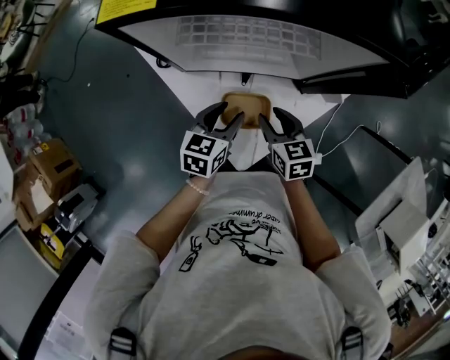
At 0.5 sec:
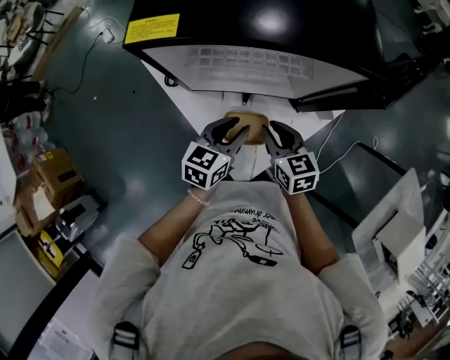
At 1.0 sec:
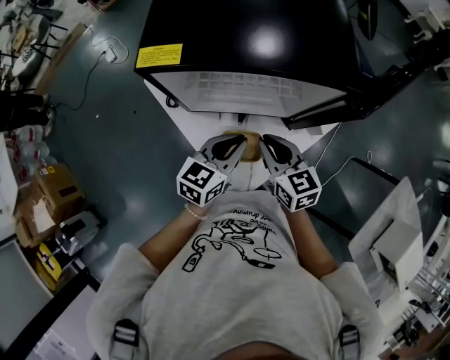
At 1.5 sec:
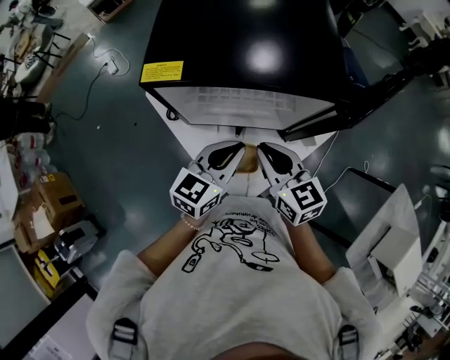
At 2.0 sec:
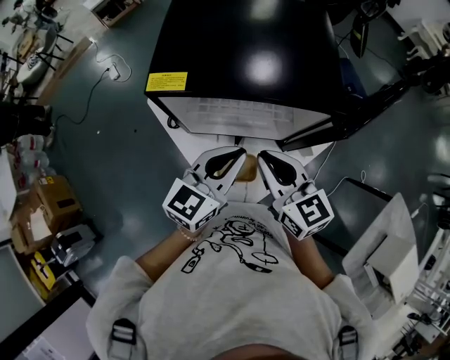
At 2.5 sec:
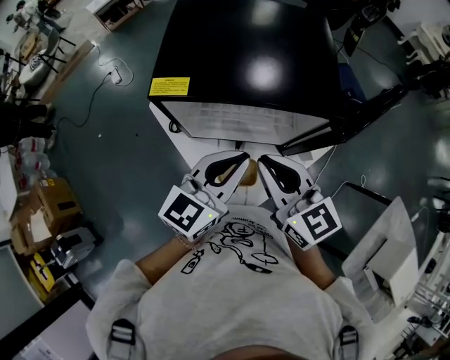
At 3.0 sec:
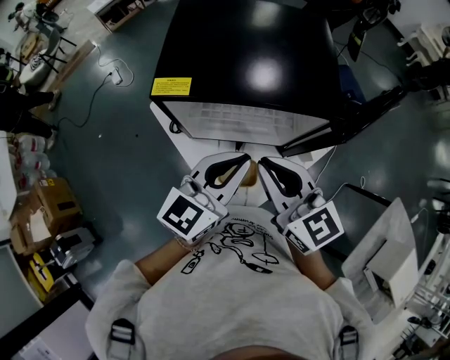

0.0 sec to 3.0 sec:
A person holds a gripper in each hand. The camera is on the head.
0.0 sec to 1.5 sec: Both grippers travel together upward, some 20 cm. The left gripper swivels some 20 degrees, and closes, while the right gripper turns by some 20 degrees, and closes up.
1.5 sec to 3.0 sec: Both grippers travel together upward, some 10 cm.

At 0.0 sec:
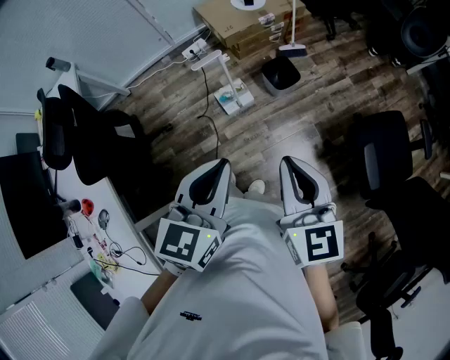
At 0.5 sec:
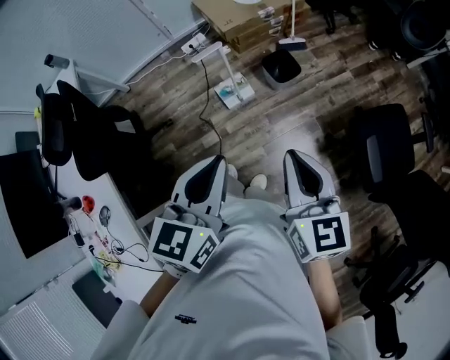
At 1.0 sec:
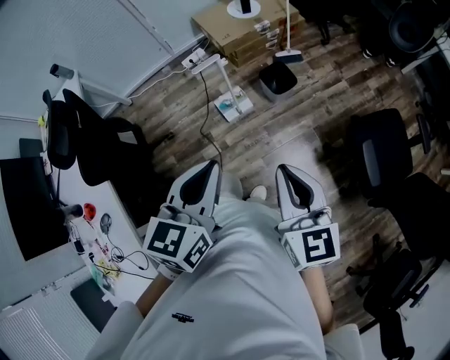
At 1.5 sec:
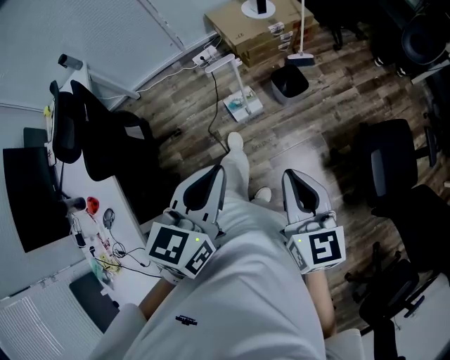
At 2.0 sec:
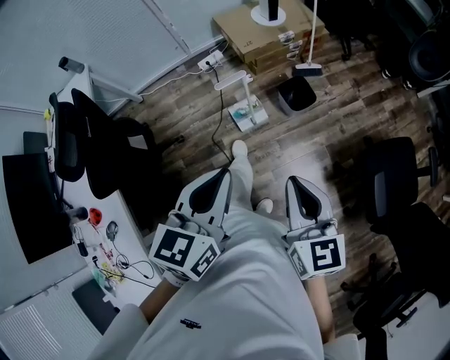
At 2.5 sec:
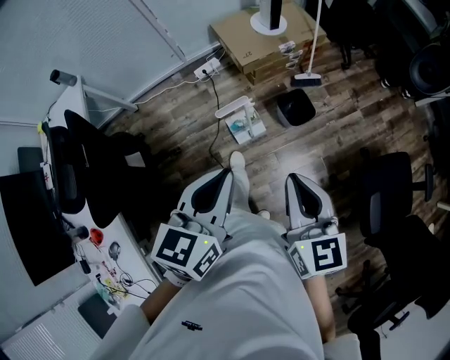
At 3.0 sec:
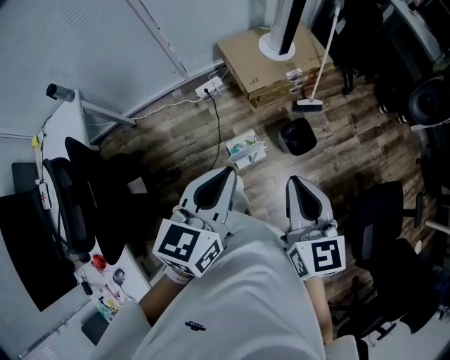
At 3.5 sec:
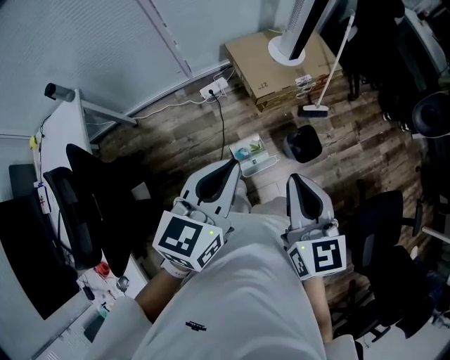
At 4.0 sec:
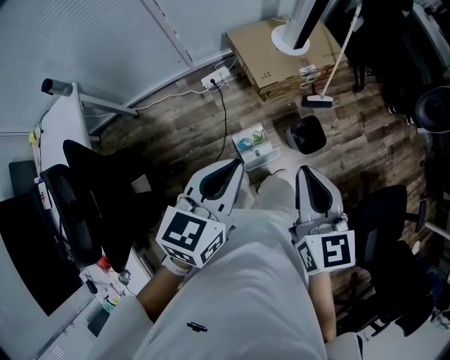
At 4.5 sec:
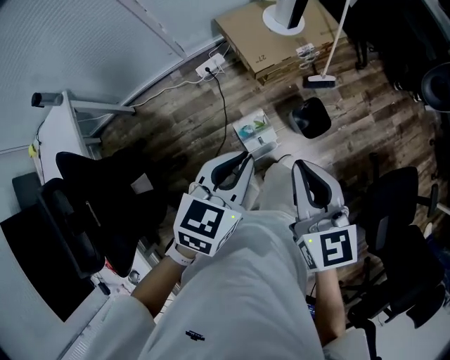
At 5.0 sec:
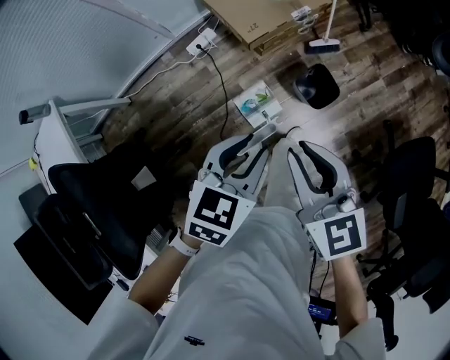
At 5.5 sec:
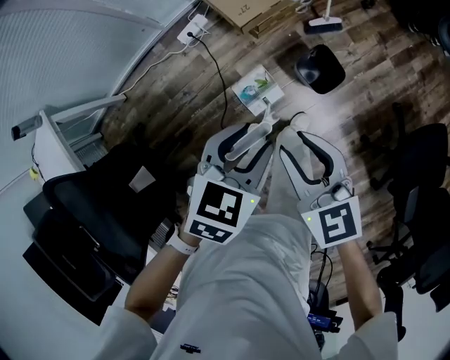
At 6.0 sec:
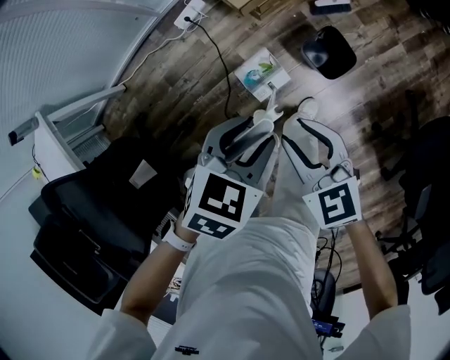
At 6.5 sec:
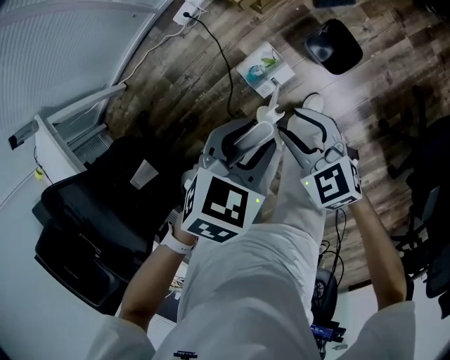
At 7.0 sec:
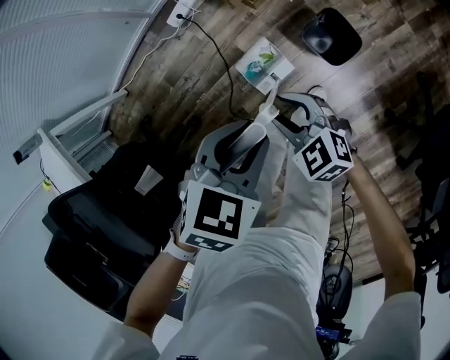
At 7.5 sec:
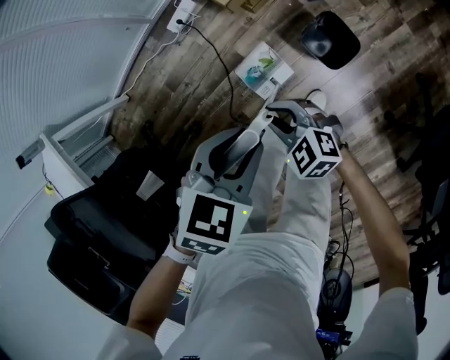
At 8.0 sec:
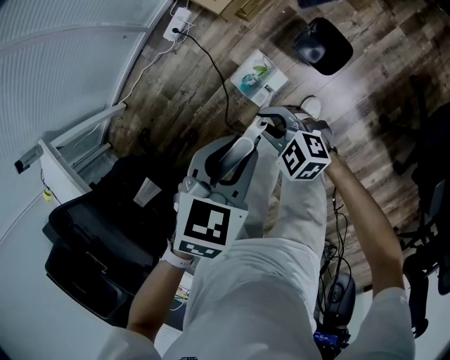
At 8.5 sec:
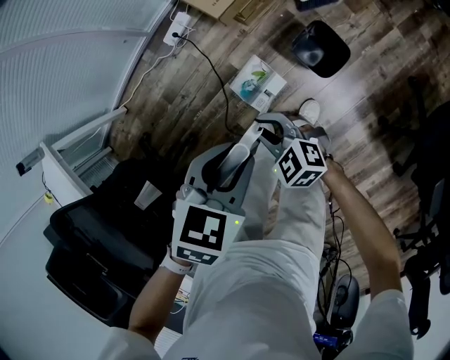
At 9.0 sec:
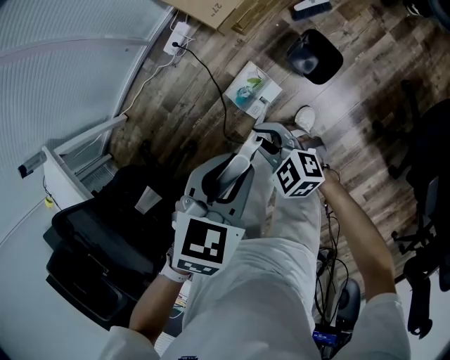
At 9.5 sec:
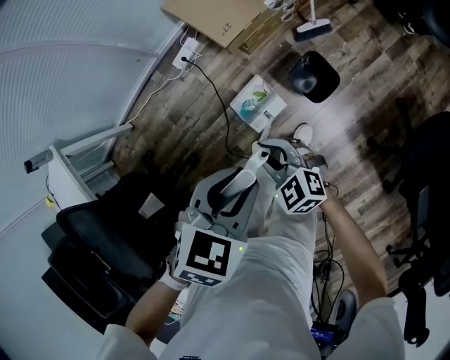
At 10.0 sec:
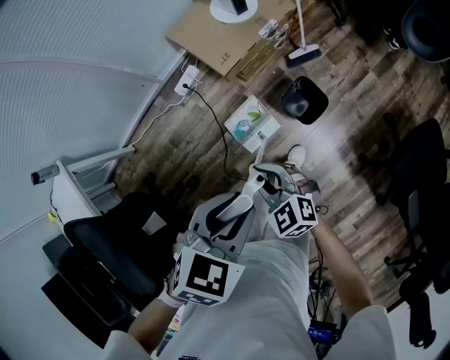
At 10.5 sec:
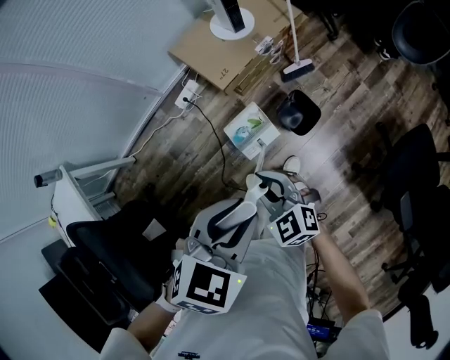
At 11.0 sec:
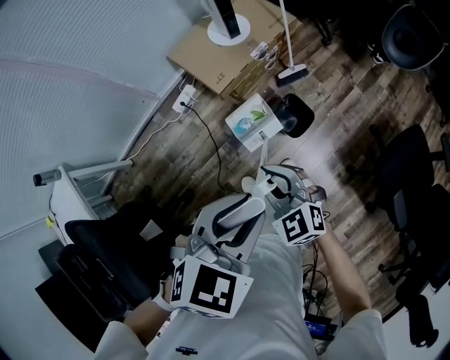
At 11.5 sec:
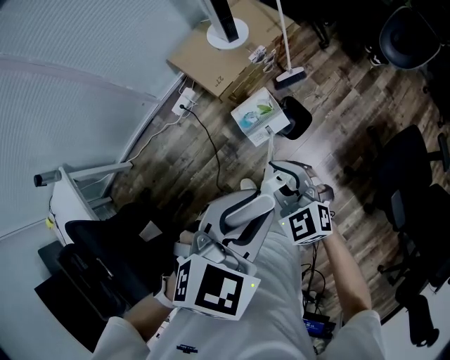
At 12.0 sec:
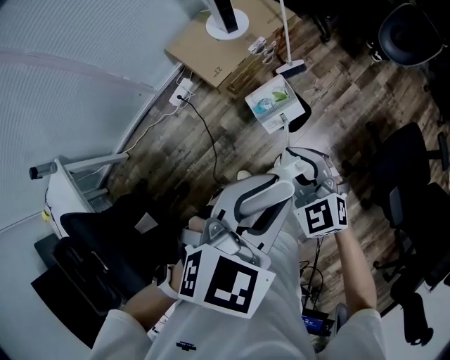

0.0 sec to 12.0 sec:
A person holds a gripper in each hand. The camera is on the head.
0.0 sec to 2.0 sec: The right gripper ends up approximately 5 cm from where it was; the left gripper goes some 10 cm to the left and forward.
2.0 sec to 4.0 sec: The two grippers go some 35 cm forward and to the left.
4.0 sec to 6.0 sec: Both grippers travel together downward, roughly 25 cm. The left gripper angles its fingers downward, by roughly 30 degrees, and opens. The right gripper swivels some 20 degrees, and opens its fingers.
6.0 sec to 8.0 sec: The right gripper moves downward, approximately 15 cm, and turns by roughly 20 degrees.
8.0 sec to 10.0 sec: Both grippers move upward, about 15 cm.
10.0 sec to 12.0 sec: Both grippers travel together upward and to the right, approximately 15 cm.

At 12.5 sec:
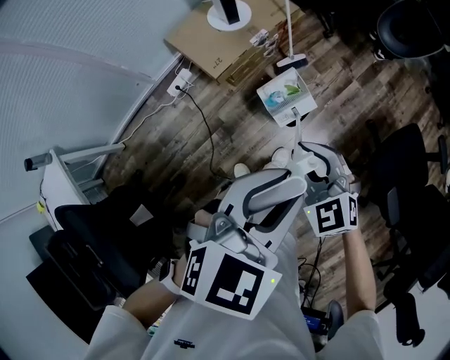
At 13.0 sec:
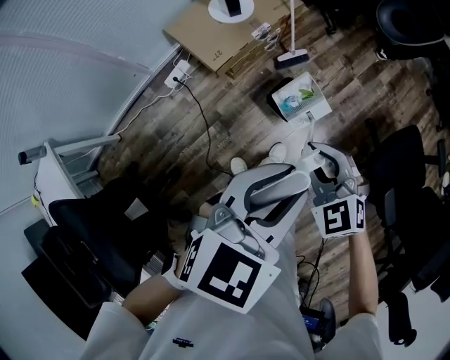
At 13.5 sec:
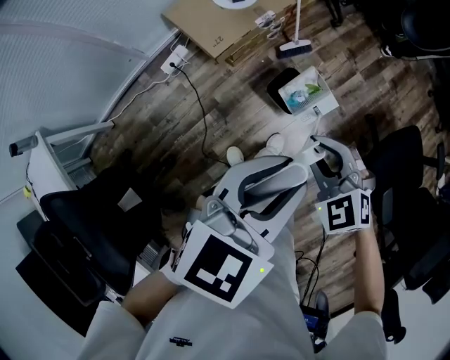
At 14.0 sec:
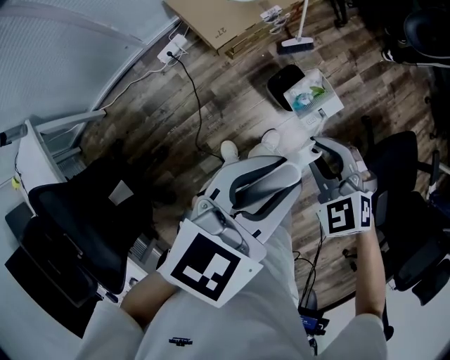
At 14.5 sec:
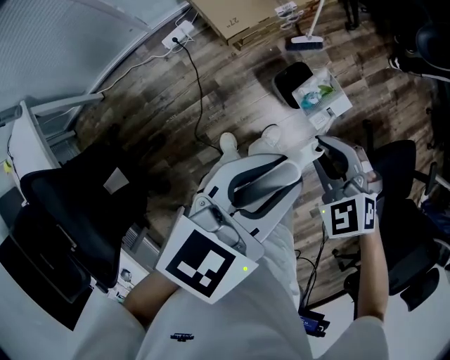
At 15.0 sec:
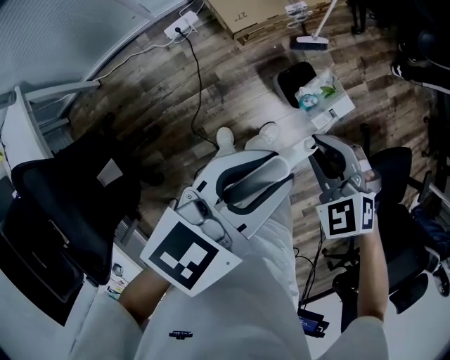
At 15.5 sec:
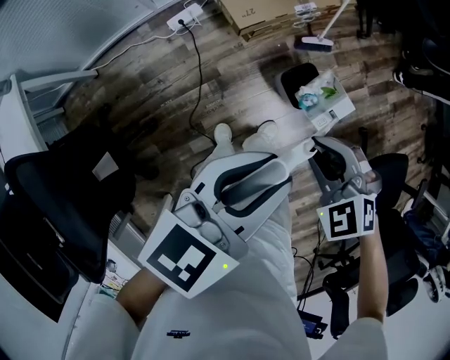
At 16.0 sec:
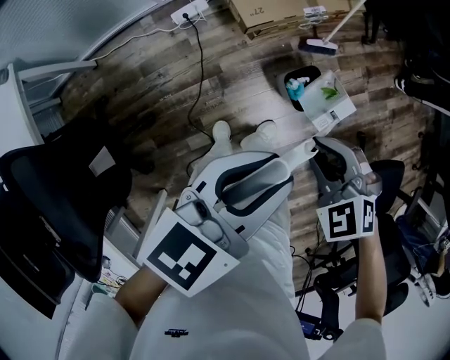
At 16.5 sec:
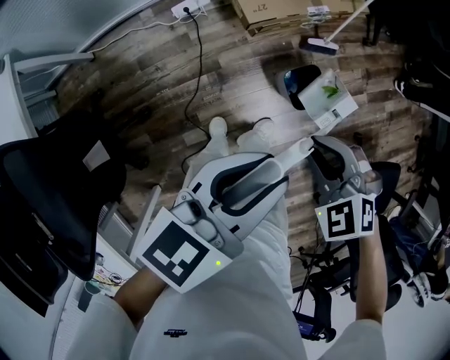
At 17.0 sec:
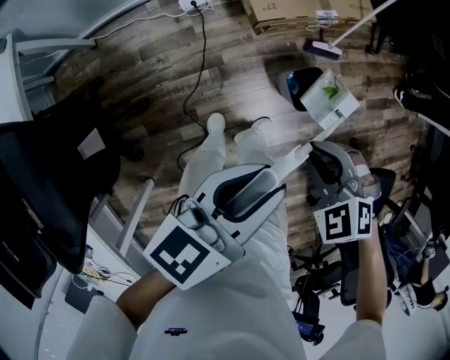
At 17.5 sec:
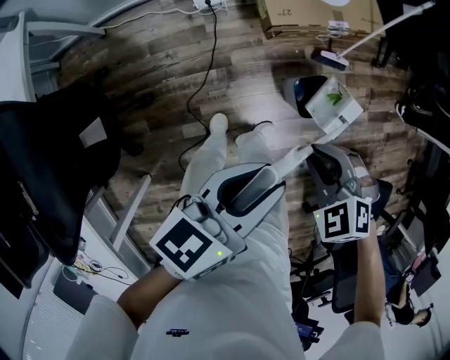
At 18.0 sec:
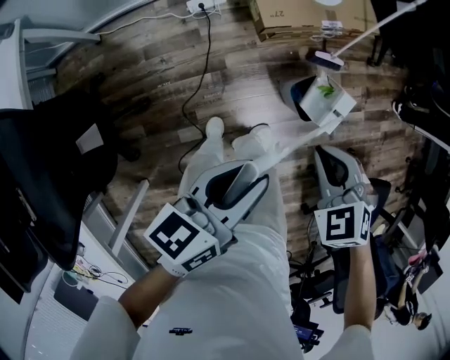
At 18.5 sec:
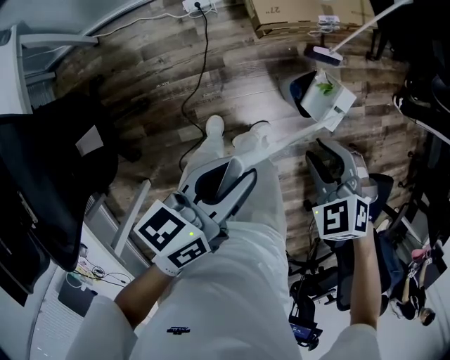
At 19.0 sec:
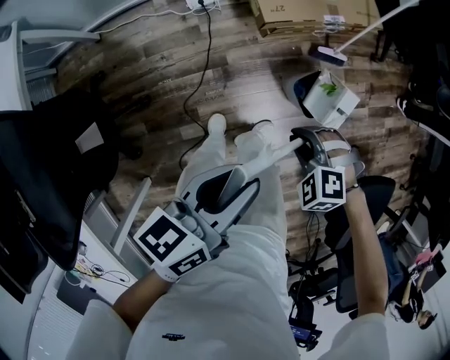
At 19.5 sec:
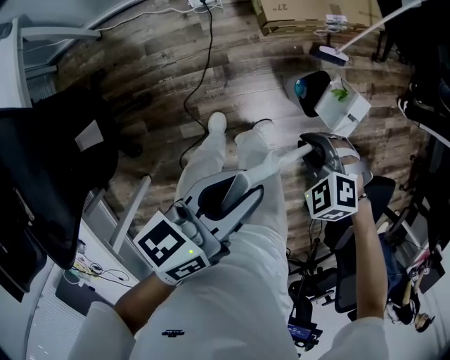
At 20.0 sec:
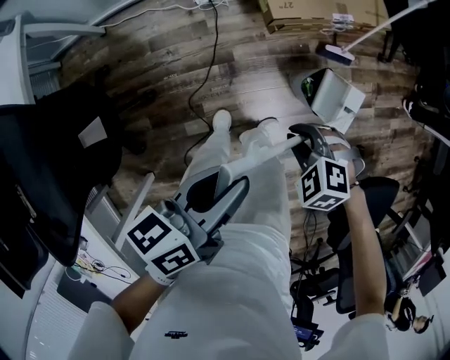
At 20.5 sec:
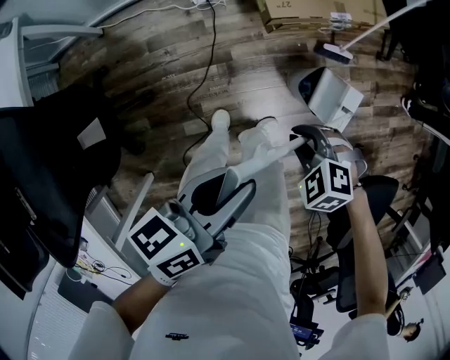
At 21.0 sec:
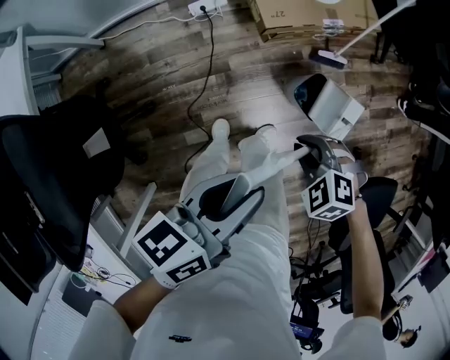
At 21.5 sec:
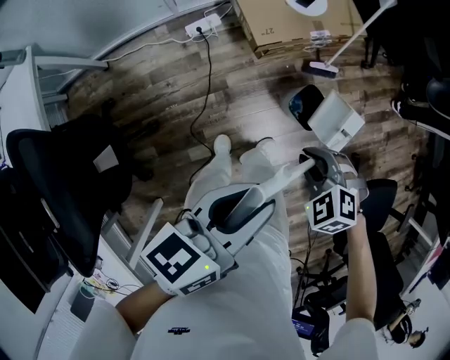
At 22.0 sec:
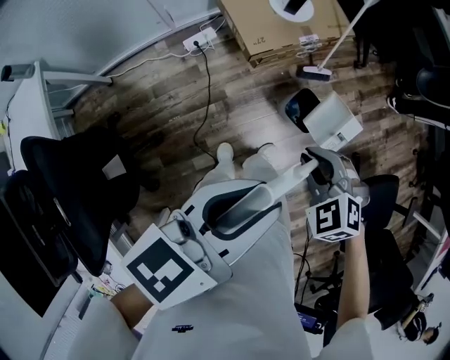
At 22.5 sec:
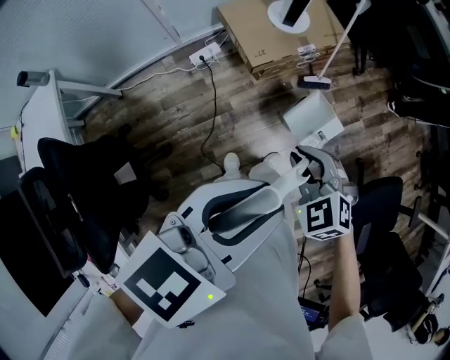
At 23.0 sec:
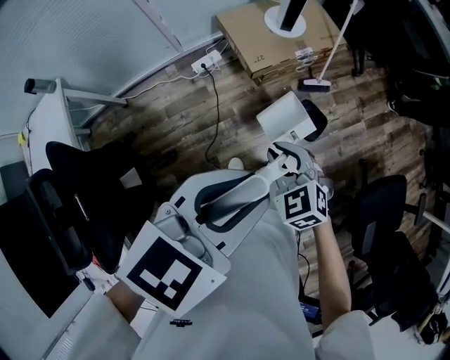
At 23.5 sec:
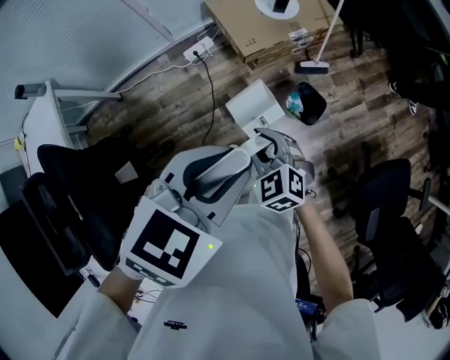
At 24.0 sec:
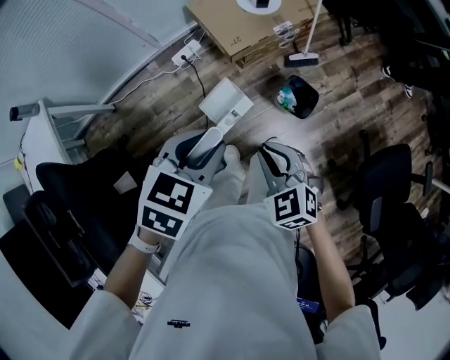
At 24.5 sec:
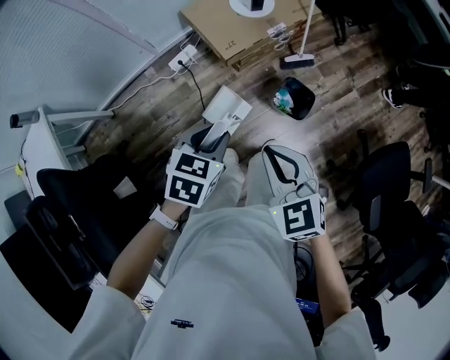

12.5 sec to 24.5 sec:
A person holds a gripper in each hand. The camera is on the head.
12.5 sec to 14.5 sec: The left gripper travels to the left and downward by approximately 10 cm, and swivels roughly 30 degrees. Meanwhile the right gripper moves approximately 5 cm, and rotates approximately 20 degrees.
14.5 sec to 16.5 sec: The left gripper travels to the left and downward by approximately 10 cm, and rotates roughly 20 degrees, while the right gripper is displaced to the left by about 5 cm.
16.5 sec to 18.5 sec: The left gripper travels downward and to the left by some 10 cm, and rotates approximately 20 degrees.
18.5 sec to 20.5 sec: The right gripper is displaced downward by about 10 cm.
20.5 sec to 22.5 sec: The two grippers go about 20 cm upward. The left gripper rotates around the line of its fingers by roughly 40 degrees, clockwise from behind, while the right gripper swivels about 40 degrees.
22.5 sec to 24.5 sec: The left gripper is displaced downward by roughly 25 cm, and changes its angle by some 30 degrees, while the right gripper travels downward and back again, roughly 10 cm each way, and turns by about 30 degrees.
